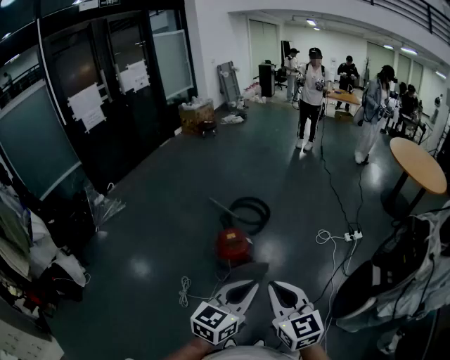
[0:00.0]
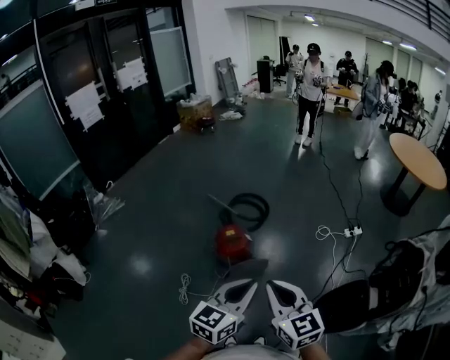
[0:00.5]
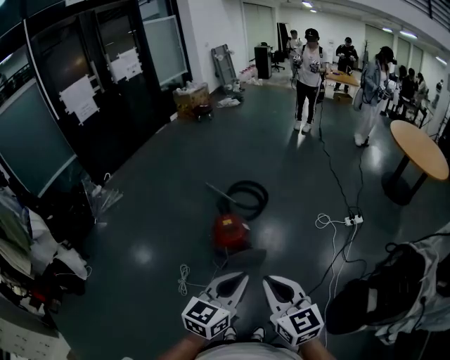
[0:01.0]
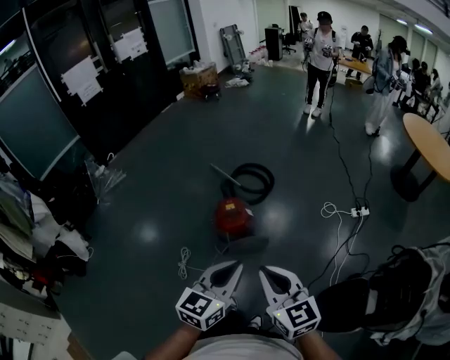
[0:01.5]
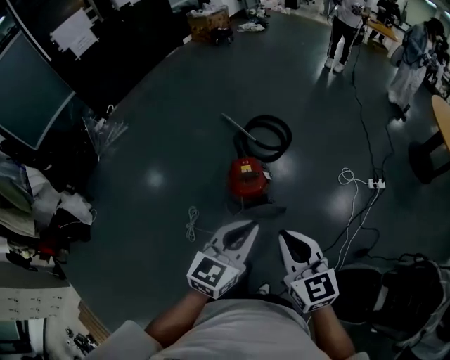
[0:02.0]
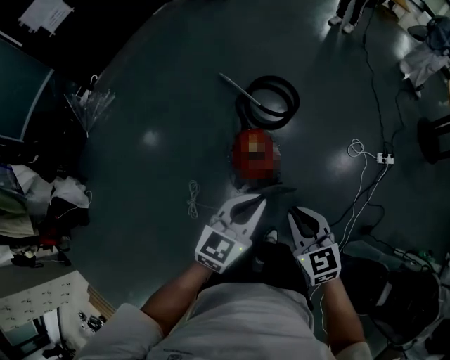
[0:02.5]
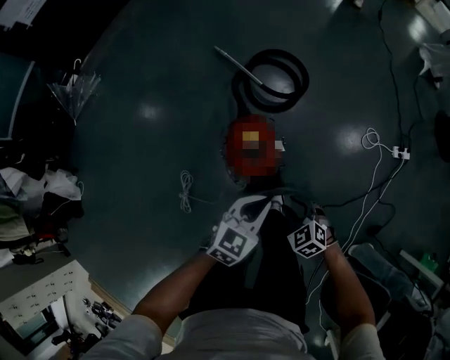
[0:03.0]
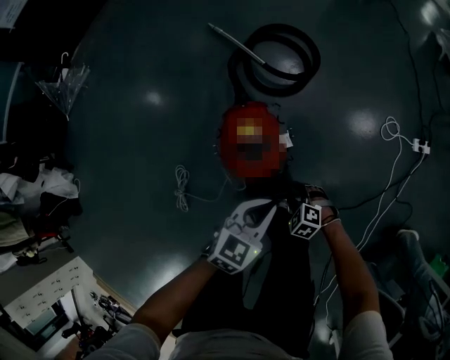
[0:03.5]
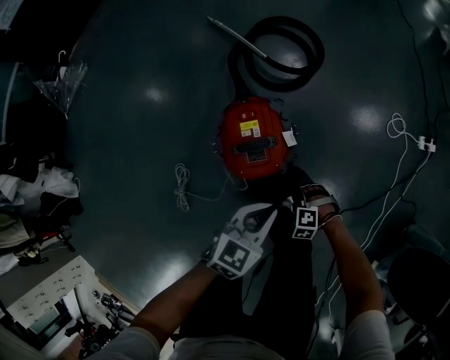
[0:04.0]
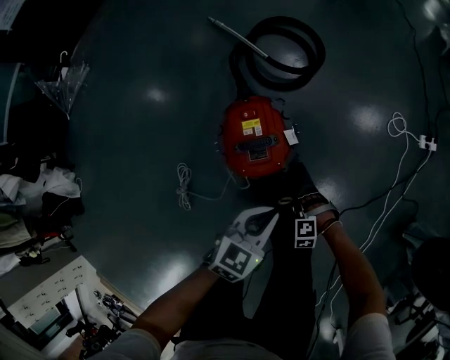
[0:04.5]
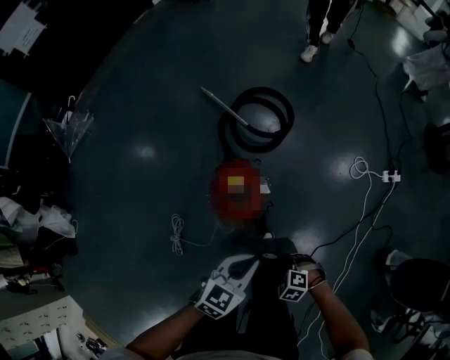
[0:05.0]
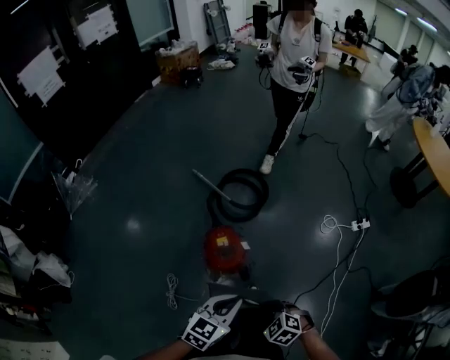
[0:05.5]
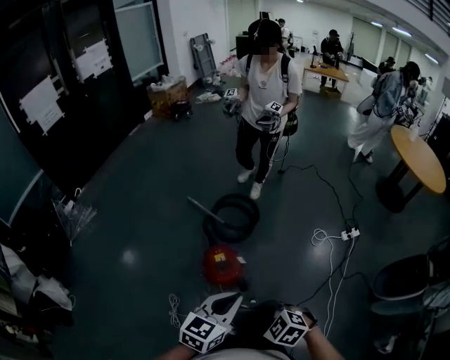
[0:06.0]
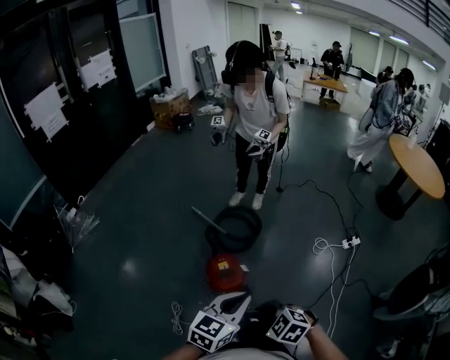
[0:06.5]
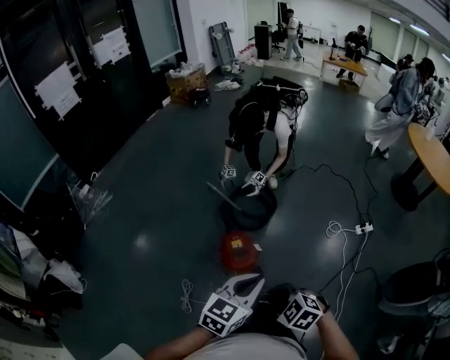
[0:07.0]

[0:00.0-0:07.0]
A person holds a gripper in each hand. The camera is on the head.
0.0 to 2.0 s: The left gripper goes about 20 cm forward, downward and to the left, while the right gripper travels forward and downward by about 20 cm.
2.0 to 3.5 s: The right gripper moves downward, approximately 70 cm, tips its fingers downward by roughly 50 degrees, and opens, while the left gripper moves downward and forward, about 50 cm, and rotates some 20 degrees.
3.5 to 5.0 s: Both grippers move upward, roughly 15 cm. The right gripper closes up.
5.0 to 7.0 s: The grippers both shift upward by approximately 35 cm. The right gripper swivels approximately 20 degrees.

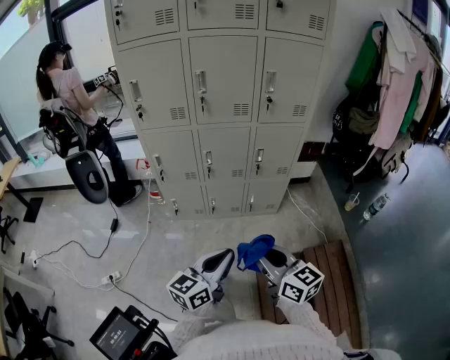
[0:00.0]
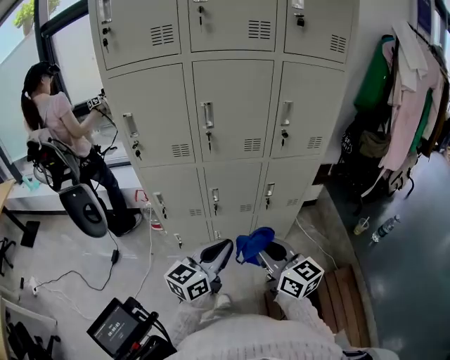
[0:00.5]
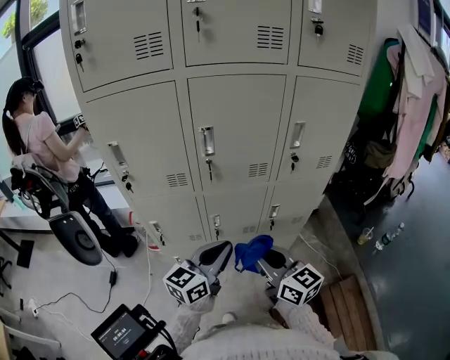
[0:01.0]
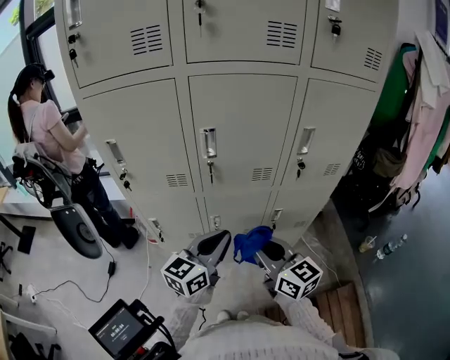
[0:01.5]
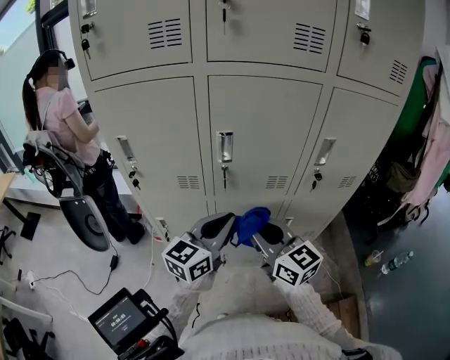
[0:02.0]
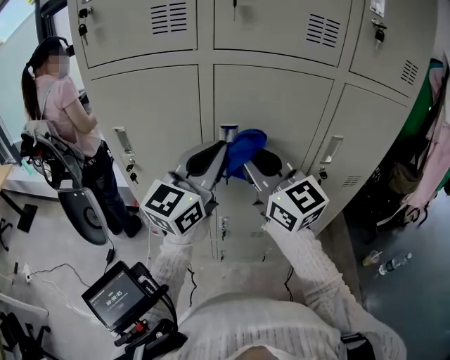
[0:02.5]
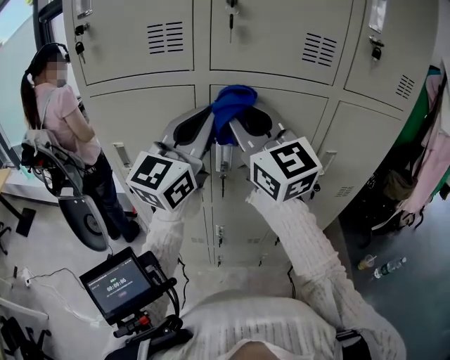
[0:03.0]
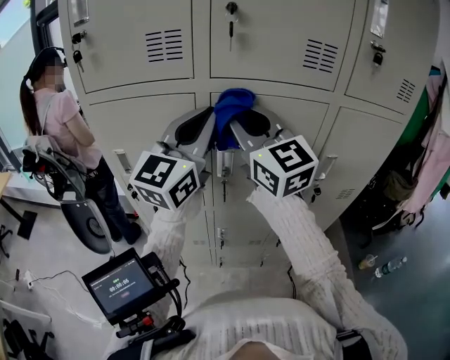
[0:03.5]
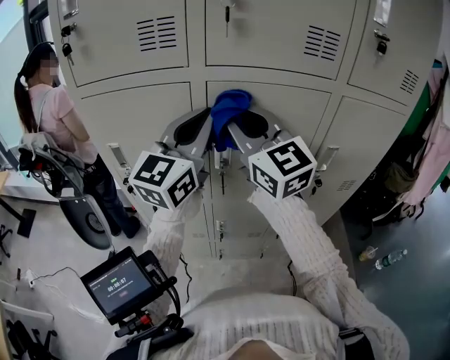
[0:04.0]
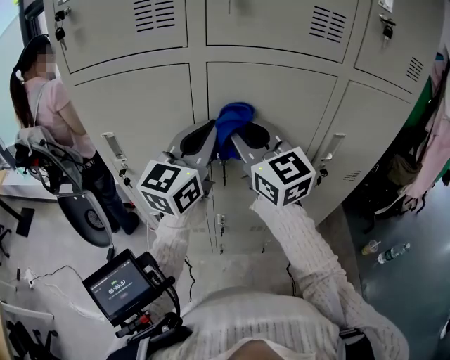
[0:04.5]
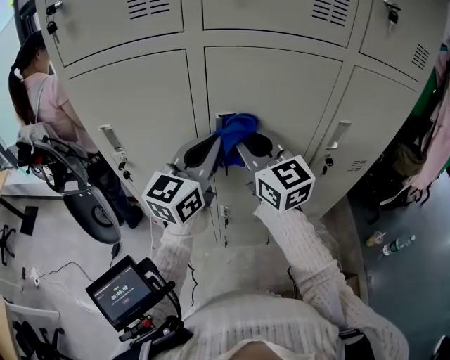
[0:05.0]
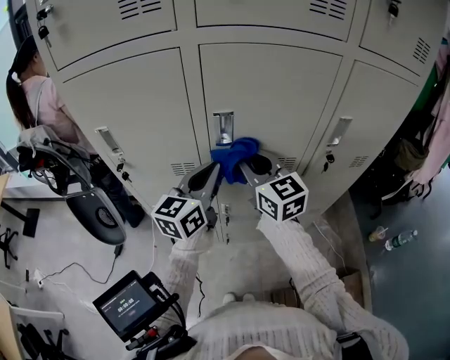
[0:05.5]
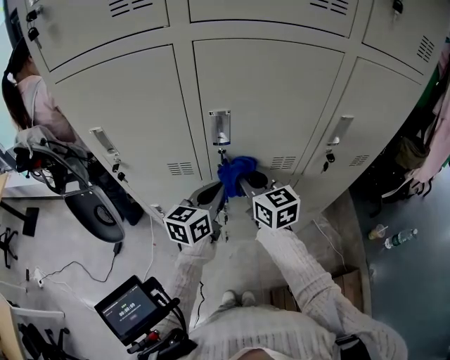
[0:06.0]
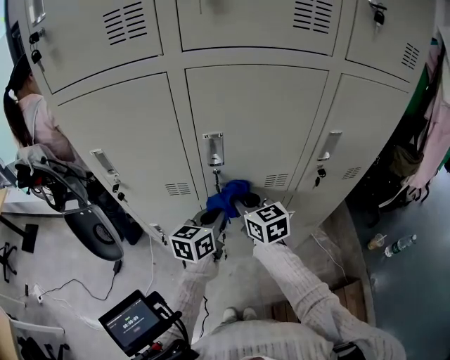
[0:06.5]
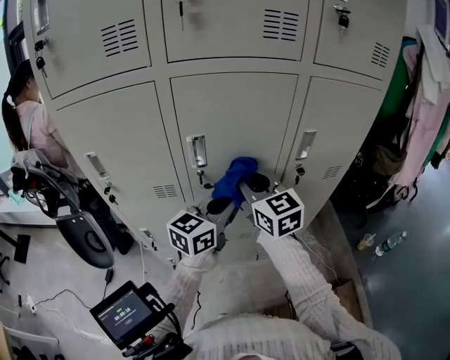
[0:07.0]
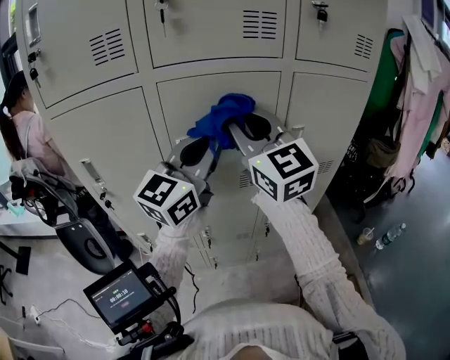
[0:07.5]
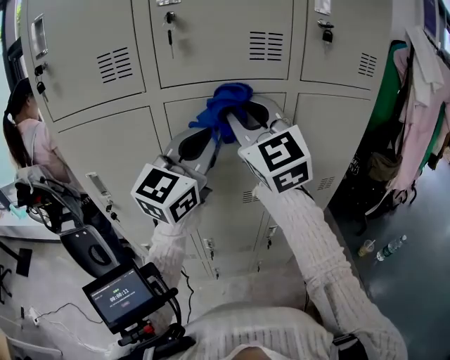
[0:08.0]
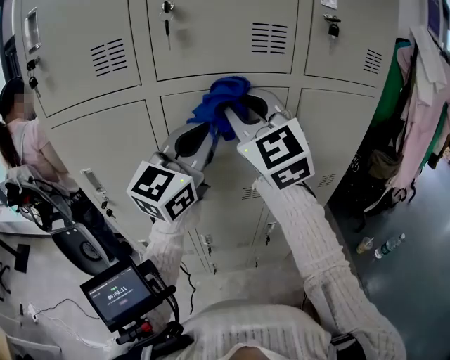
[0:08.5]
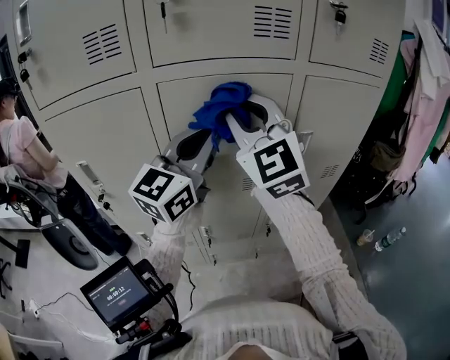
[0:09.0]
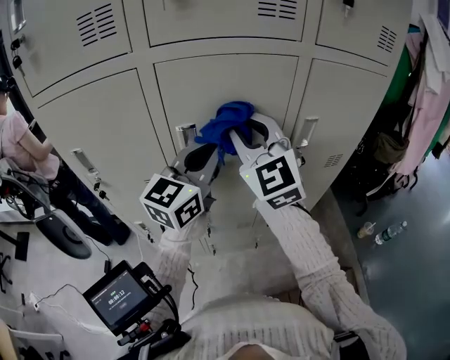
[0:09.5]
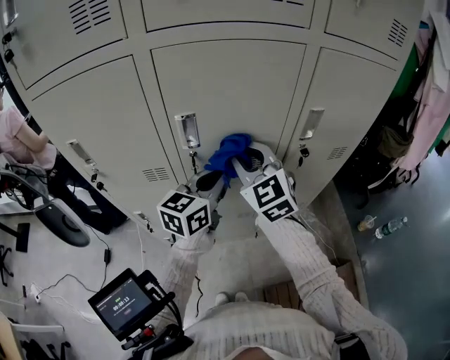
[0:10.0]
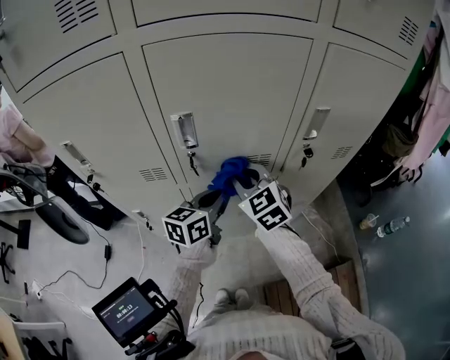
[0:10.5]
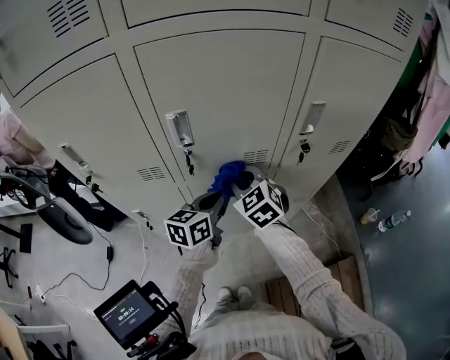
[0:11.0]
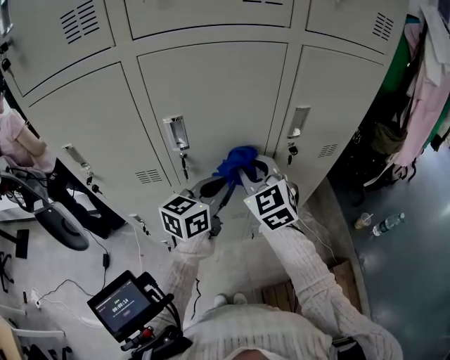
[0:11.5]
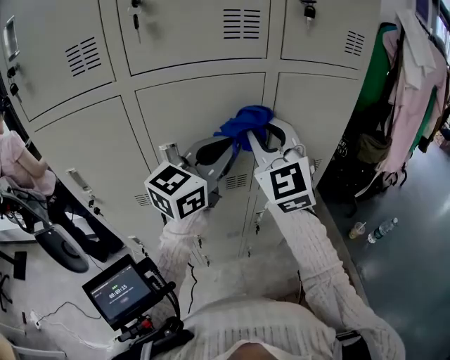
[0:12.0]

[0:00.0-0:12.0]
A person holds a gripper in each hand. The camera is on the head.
0.0 to 2.0 s: The two grippers travel together, forward, about 40 cm.
2.0 to 4.0 s: Both grippers travel together upward and forward, roughly 30 cm. The right gripper turns by roughly 30 degrees. The left gripper rotates some 20 degrees.
4.0 to 6.0 s: The two grippers go approximately 30 cm downward. The right gripper swivels about 30 degrees. The left gripper swivels roughly 40 degrees.
6.0 to 8.0 s: Both grippers move upward, about 35 cm. The right gripper changes its angle by approximately 40 degrees. Meanwhile the left gripper turns by roughly 40 degrees.
8.0 to 10.0 s: Both grippers move downward, about 25 cm. The left gripper turns by about 30 degrees. Meanwhile the right gripper turns by about 20 degrees.
10.0 to 12.0 s: The grippers both shift upward and to the right by about 20 cm. The left gripper changes its angle by approximately 30 degrees. Meanwhile the right gripper rotates approximately 20 degrees.

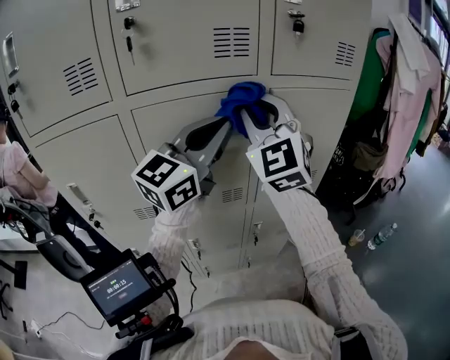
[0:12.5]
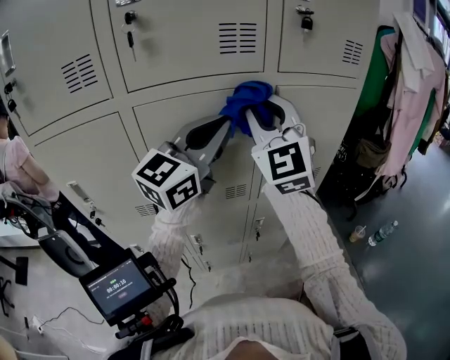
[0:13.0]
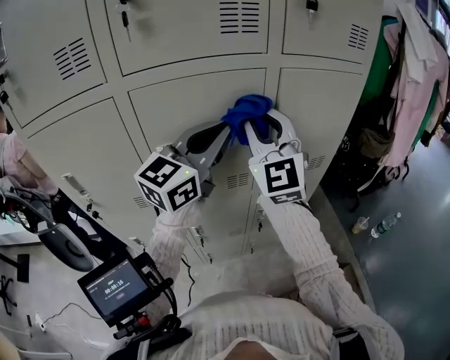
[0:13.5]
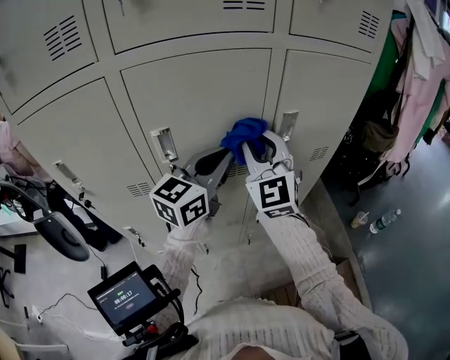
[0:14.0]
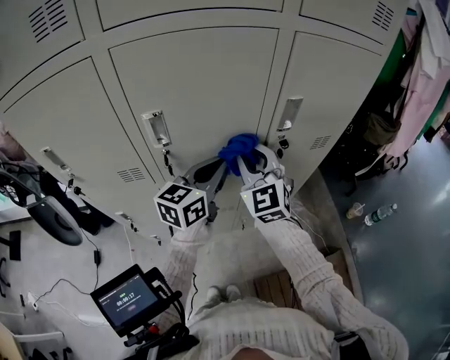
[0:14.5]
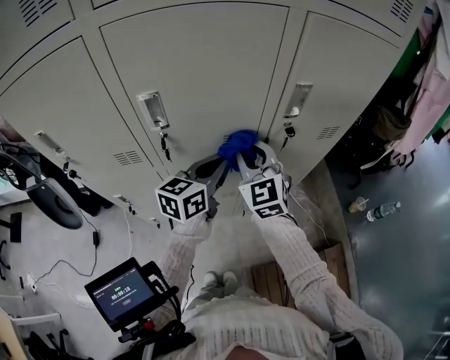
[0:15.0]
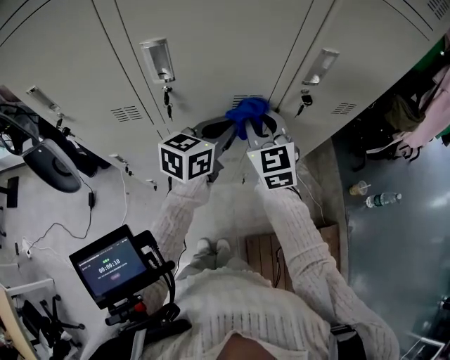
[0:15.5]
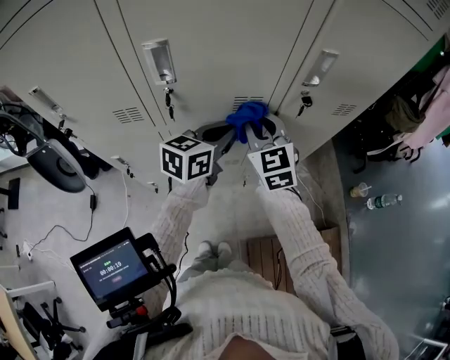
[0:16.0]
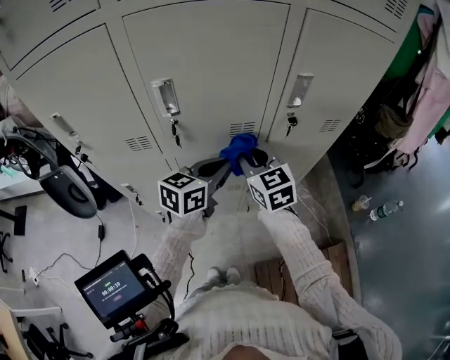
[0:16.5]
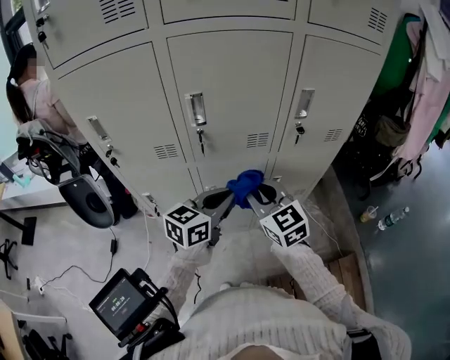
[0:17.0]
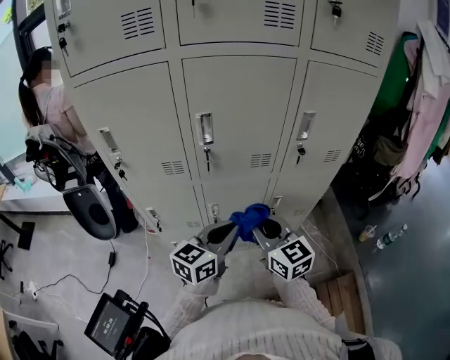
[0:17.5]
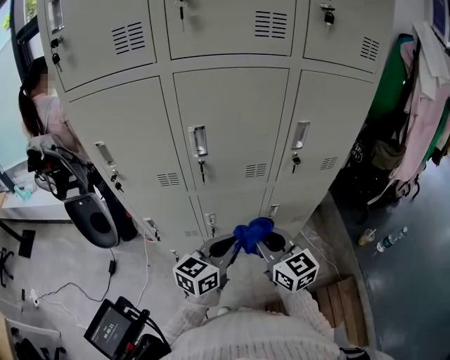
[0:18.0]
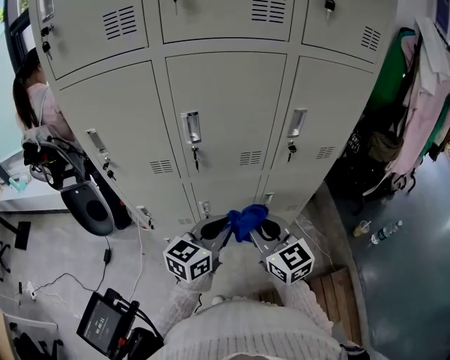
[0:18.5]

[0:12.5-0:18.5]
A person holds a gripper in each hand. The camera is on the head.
12.5 to 14.5 s: The two grippers go some 25 cm downward. The left gripper changes its angle by some 30 degrees. Meanwhile the right gripper turns by about 20 degrees.
14.5 to 16.5 s: The two grippers go roughly 10 cm downward. The right gripper turns by roughly 30 degrees.
16.5 to 18.5 s: Both grippers move backward, some 15 cm.

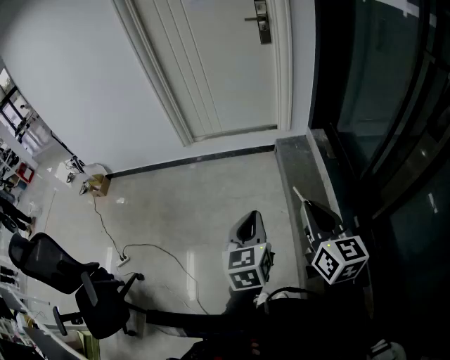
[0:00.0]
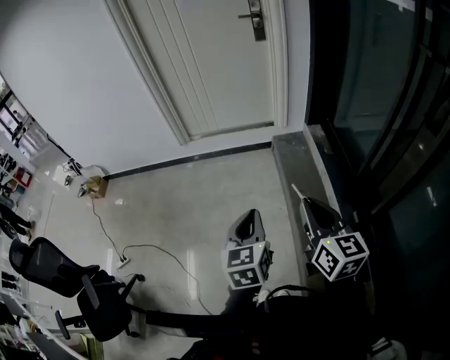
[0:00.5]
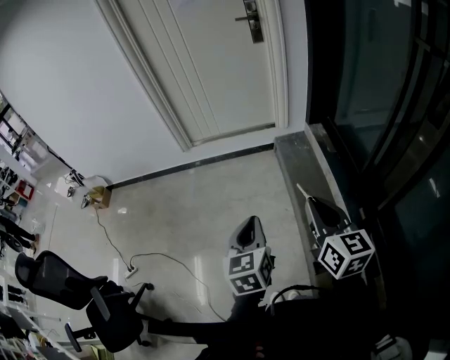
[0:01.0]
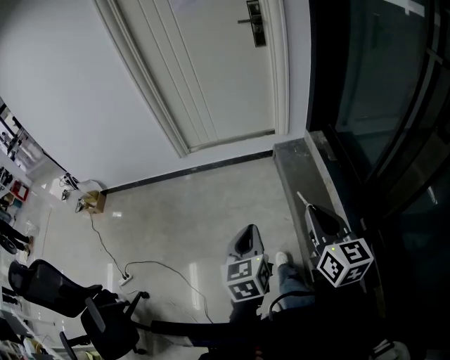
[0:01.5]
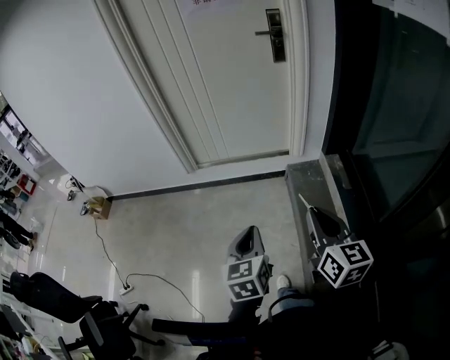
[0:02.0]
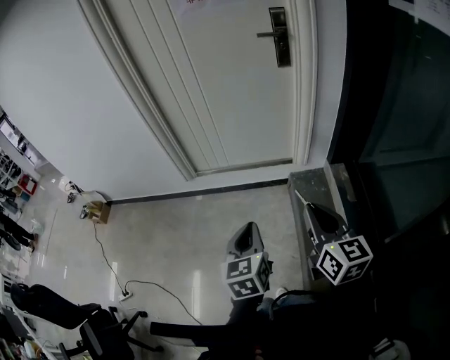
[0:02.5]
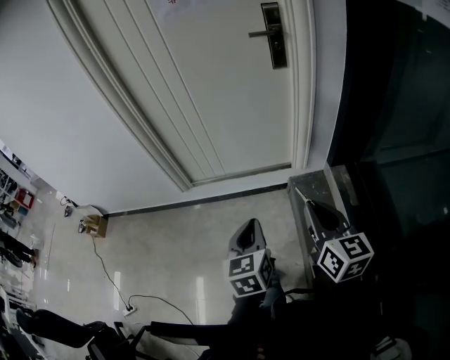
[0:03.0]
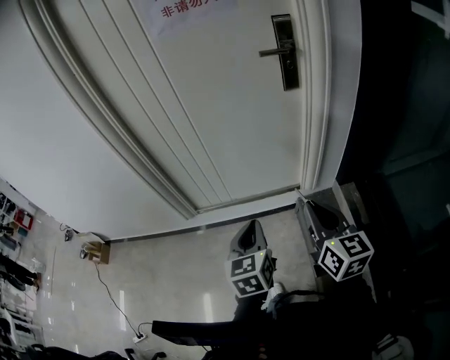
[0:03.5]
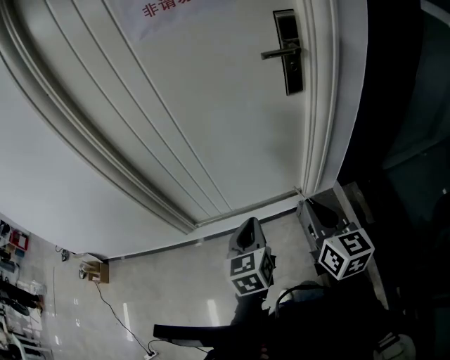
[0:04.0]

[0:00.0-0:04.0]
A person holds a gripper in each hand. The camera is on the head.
0.0 to 2.0 s: Both grippers move forward, about 25 cm.
2.0 to 4.0 s: The two grippers travel together, forward, some 50 cm.
